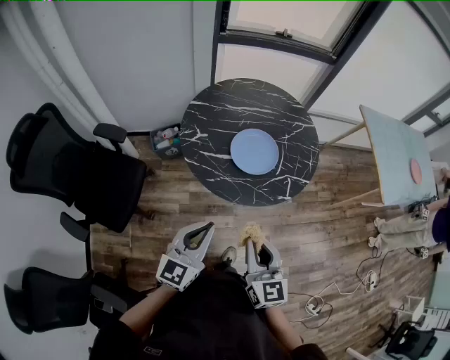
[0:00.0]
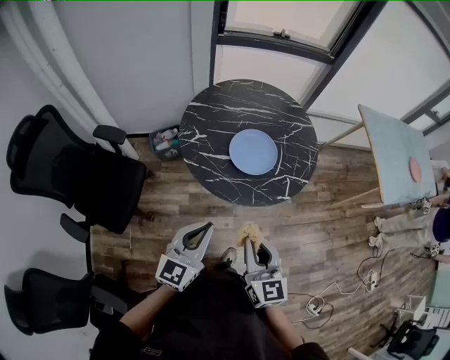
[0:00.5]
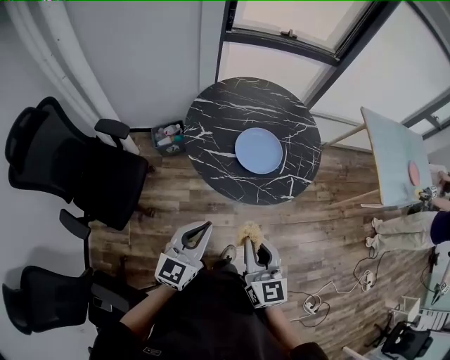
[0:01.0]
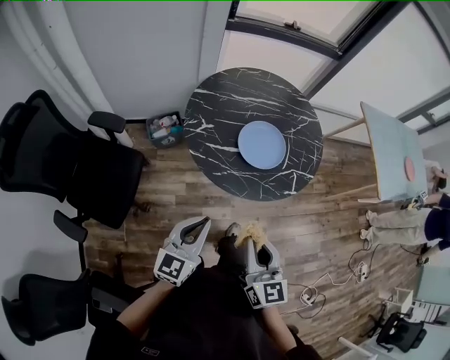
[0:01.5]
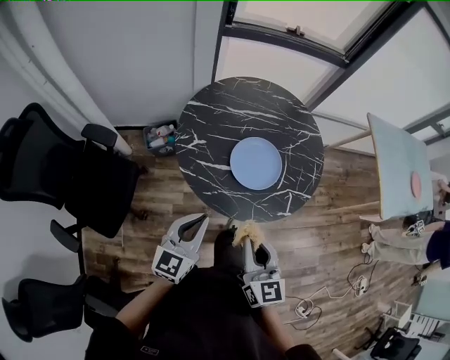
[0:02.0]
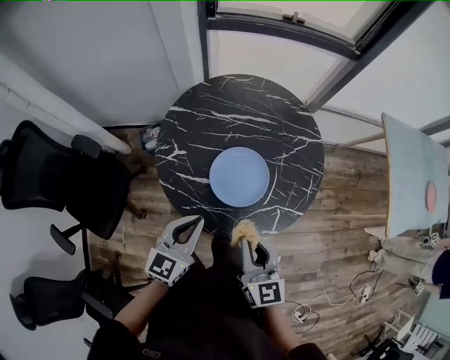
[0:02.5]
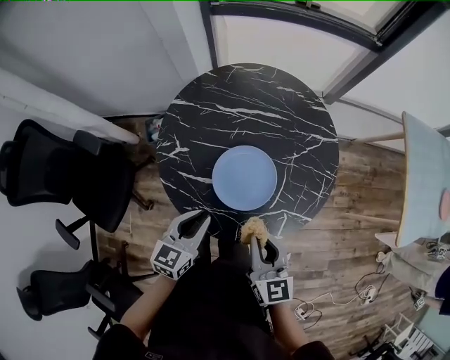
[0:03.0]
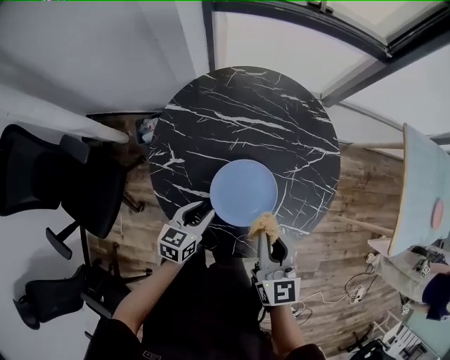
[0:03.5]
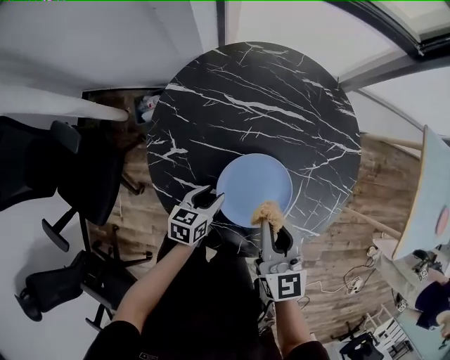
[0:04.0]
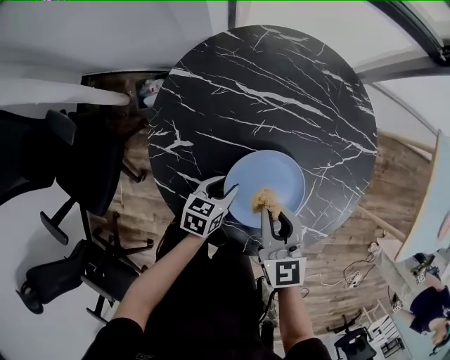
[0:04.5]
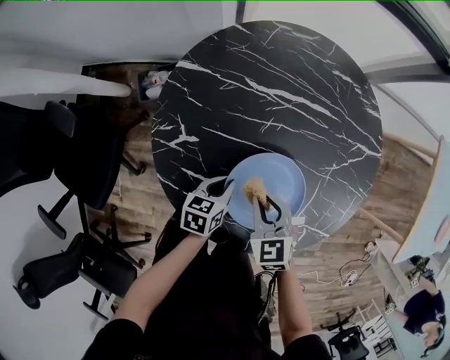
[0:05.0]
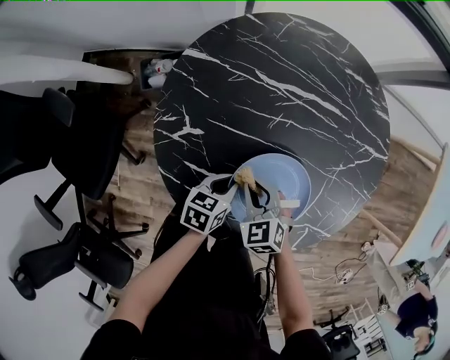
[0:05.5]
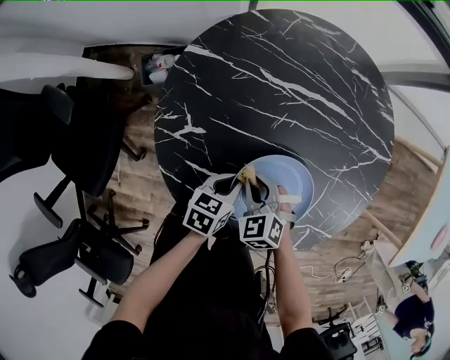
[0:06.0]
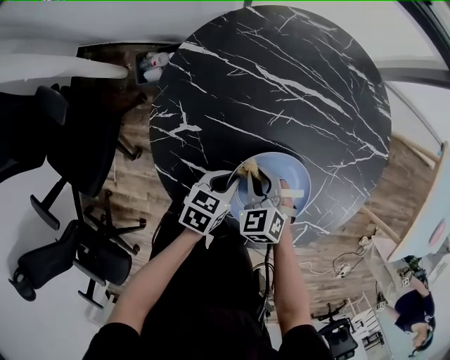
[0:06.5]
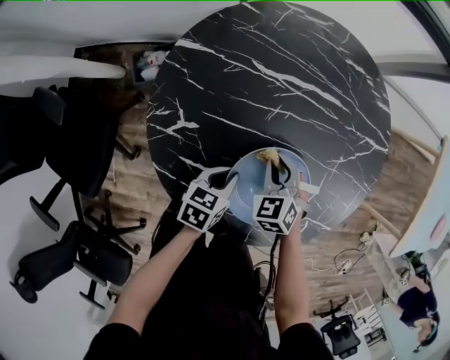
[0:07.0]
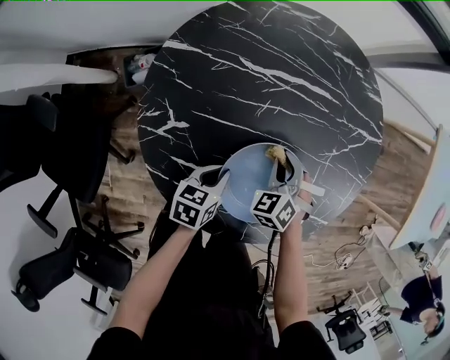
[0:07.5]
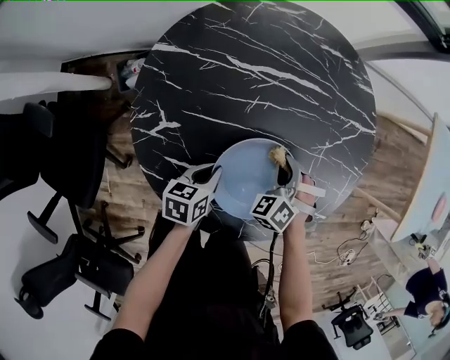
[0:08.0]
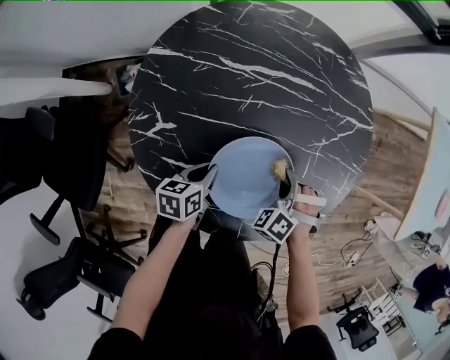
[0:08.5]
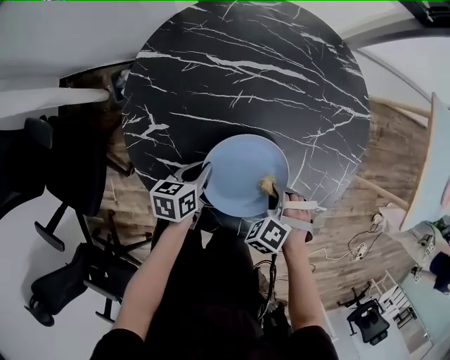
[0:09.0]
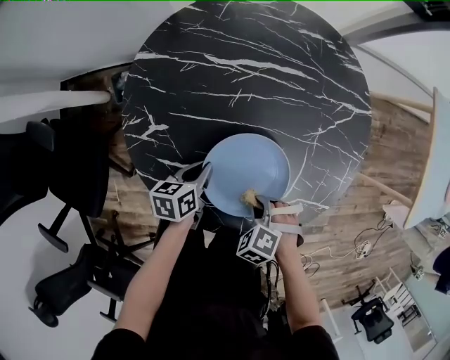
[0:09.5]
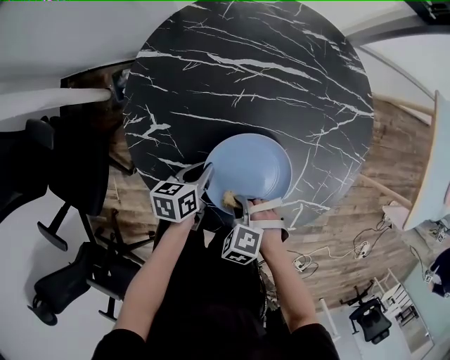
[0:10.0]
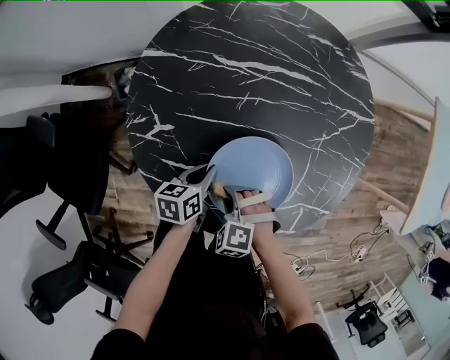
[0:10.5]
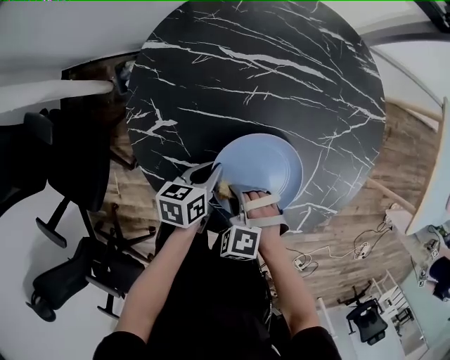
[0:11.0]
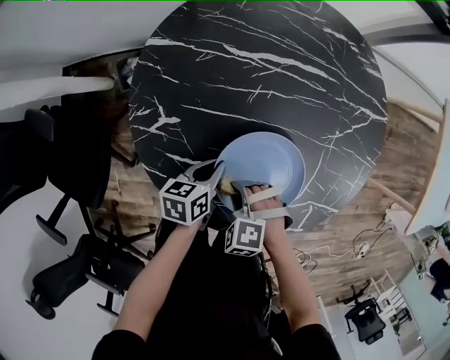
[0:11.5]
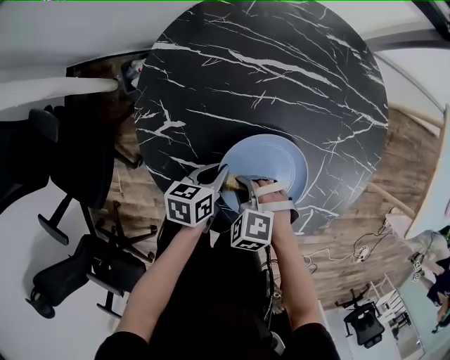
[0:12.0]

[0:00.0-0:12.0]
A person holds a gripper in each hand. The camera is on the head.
0:00.0 to 0:02.0: The left gripper moves forward and downward, roughly 10 cm, while the right gripper moves forward, roughly 10 cm.
0:02.0 to 0:04.0: The left gripper travels downward and forward by about 40 cm, points its fingers roughly 30 degrees further downward, and opens up; the right gripper is displaced forward by about 30 cm.
0:04.0 to 0:06.0: The left gripper closes up; the right gripper heads downward, covering roughly 25 cm, and angles its fingers downward, by some 40 degrees.
0:06.0 to 0:08.0: The right gripper moves approximately 15 cm, and rotates some 30 degrees.
0:08.0 to 0:10.0: The right gripper ends up about 20 cm from where it was, and rotates about 40 degrees.
0:10.0 to 0:12.0: The right gripper shifts by roughly 10 cm.

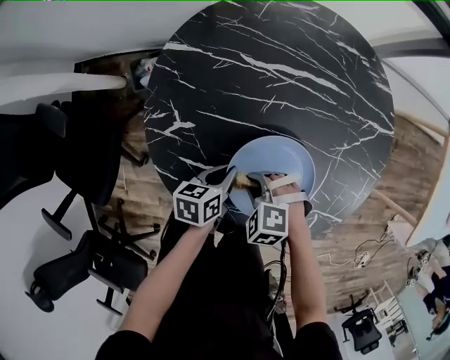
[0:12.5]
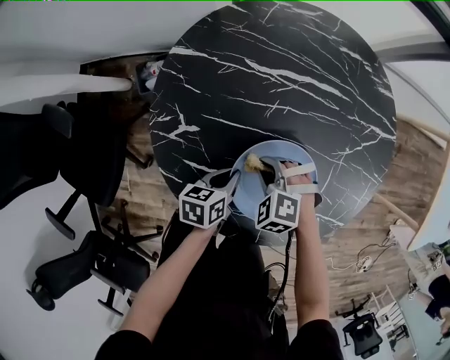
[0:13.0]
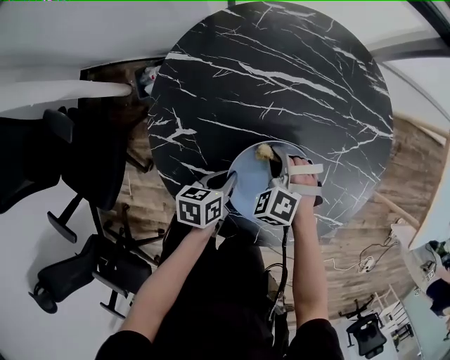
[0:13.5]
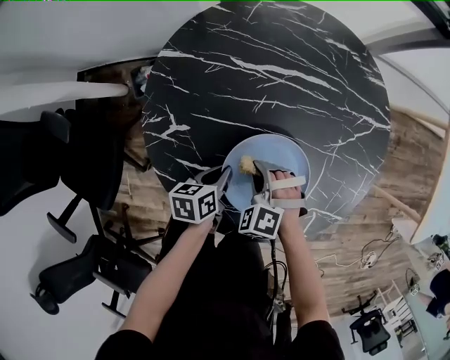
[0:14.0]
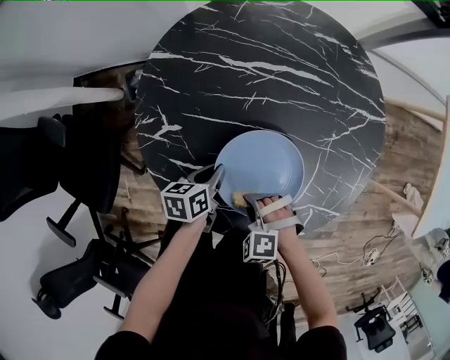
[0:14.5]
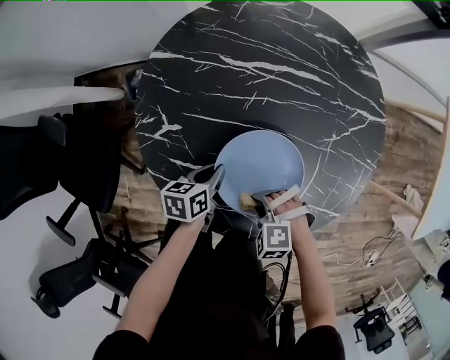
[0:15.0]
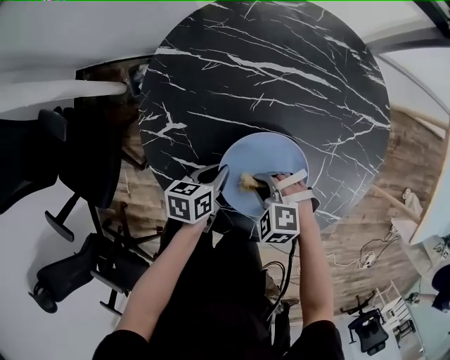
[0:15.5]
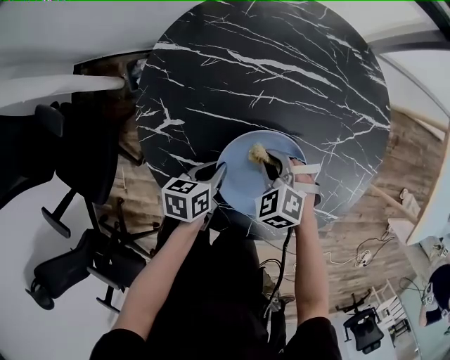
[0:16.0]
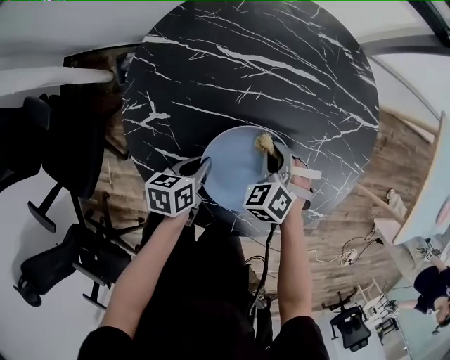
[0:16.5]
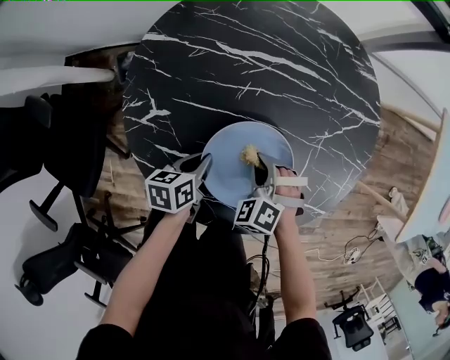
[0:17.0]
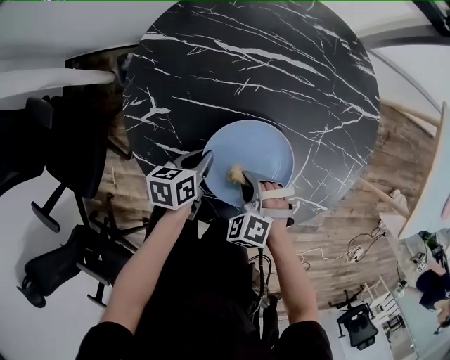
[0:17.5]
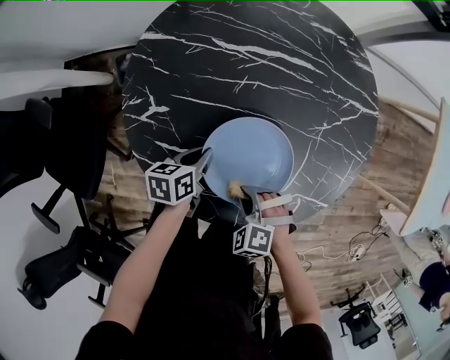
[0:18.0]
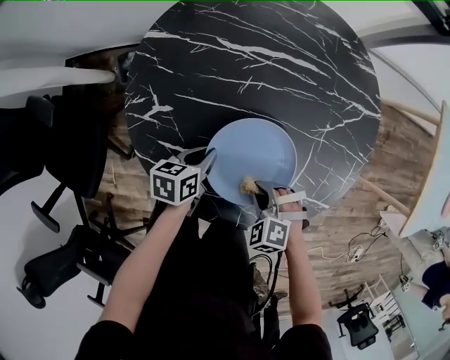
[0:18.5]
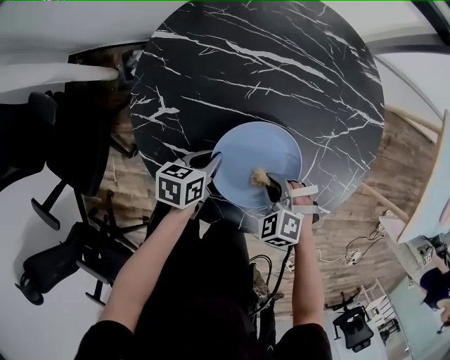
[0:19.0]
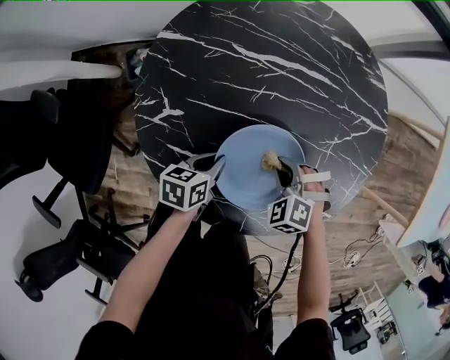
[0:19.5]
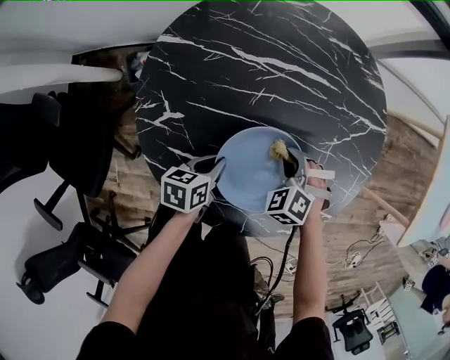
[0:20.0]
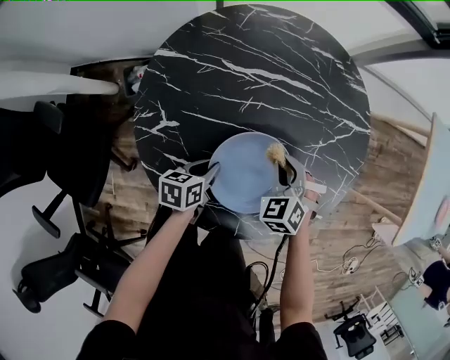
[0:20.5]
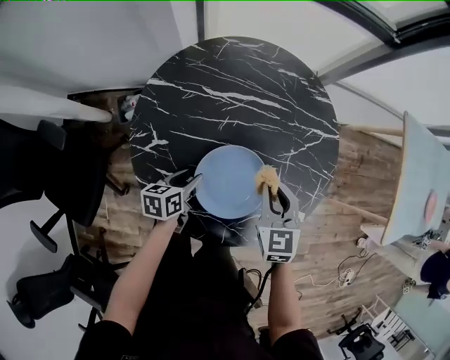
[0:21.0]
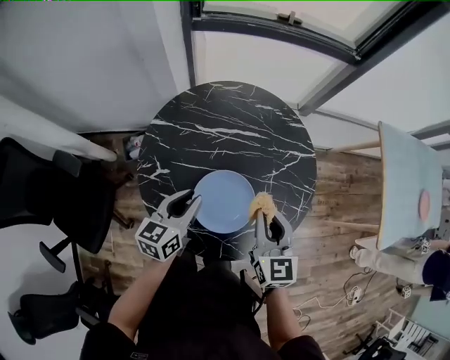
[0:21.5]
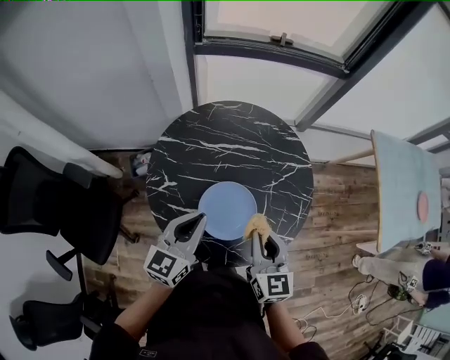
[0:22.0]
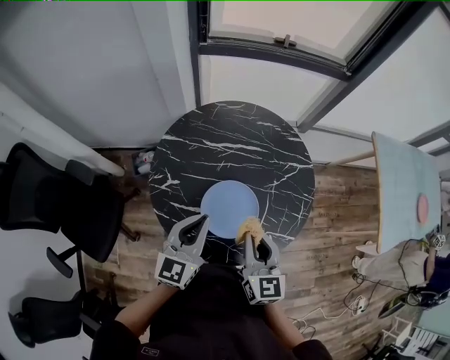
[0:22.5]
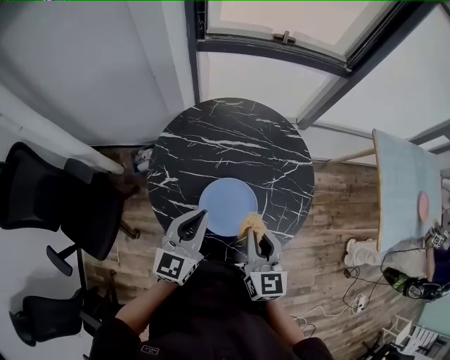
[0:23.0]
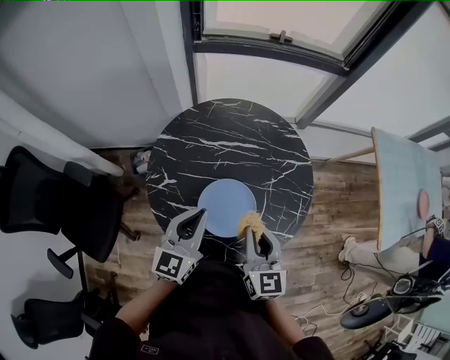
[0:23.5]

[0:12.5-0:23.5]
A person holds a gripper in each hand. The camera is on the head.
0:14.5 to 0:16.0: The right gripper ends up roughly 15 cm from where it was, and turns by about 20 degrees.
0:16.0 to 0:18.0: The right gripper travels backward by some 15 cm.
0:18.0 to 0:20.0: The right gripper goes approximately 15 cm forward.
0:20.0 to 0:21.5: Both grippers travel together upward, approximately 30 cm. The left gripper rotates some 40 degrees, while the right gripper points its fingers roughly 40 degrees further upward.
0:21.5 to 0:23.5: The left gripper travels upward by approximately 10 cm, turns by approximately 20 degrees, and closes. Meanwhile the right gripper shifts roughly 5 cm backward.

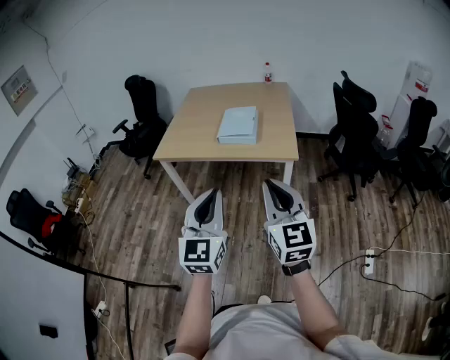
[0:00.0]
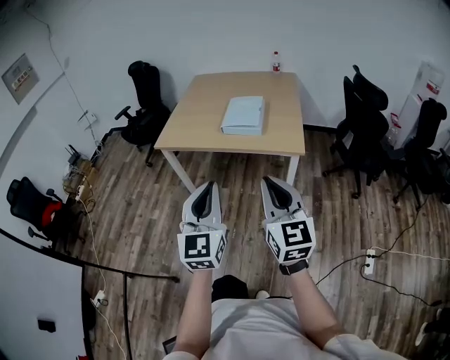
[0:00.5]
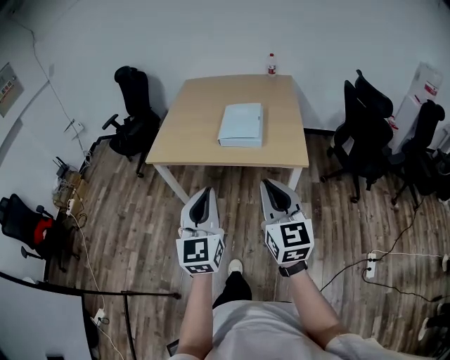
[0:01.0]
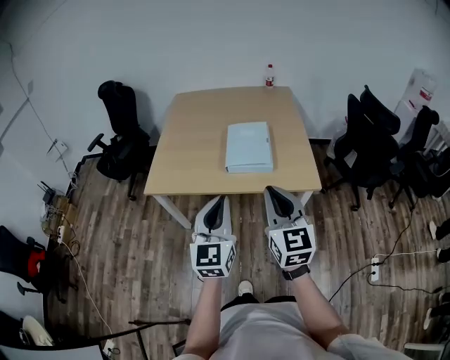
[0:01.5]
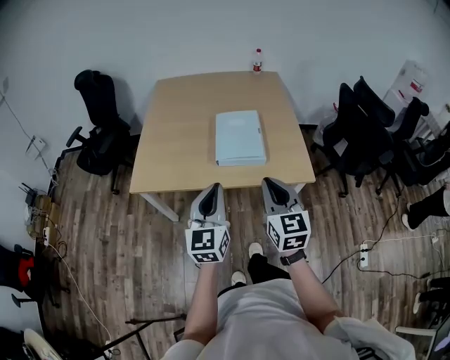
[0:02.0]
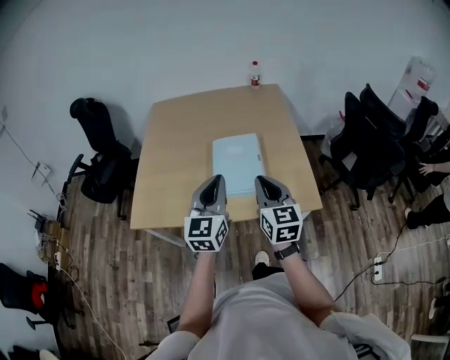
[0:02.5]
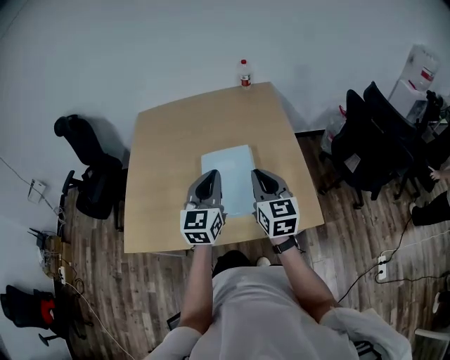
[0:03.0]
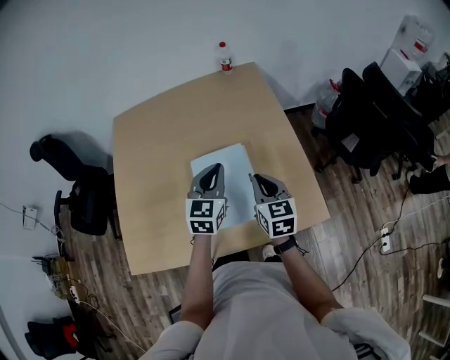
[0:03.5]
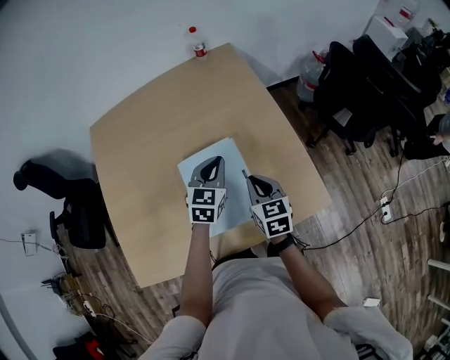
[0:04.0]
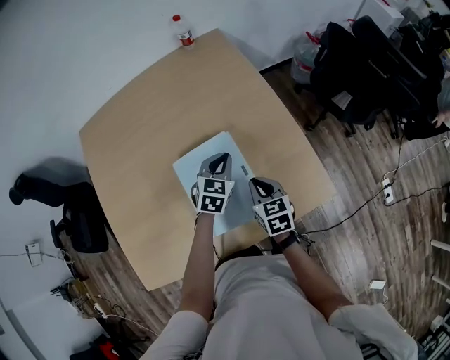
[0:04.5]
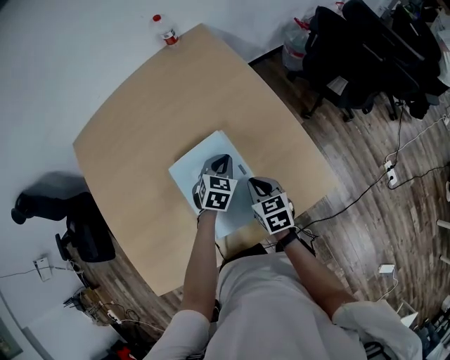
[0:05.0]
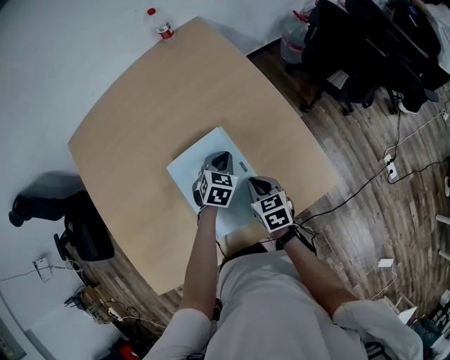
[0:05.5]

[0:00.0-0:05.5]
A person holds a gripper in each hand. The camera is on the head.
0:00.0 to 0:02.0: Both grippers move forward, some 40 cm.
0:02.0 to 0:03.5: The two grippers go about 40 cm forward. The left gripper changes its angle by some 30 degrees.
0:03.5 to 0:05.5: Both grippers move downward, some 20 cm. The left gripper angles its fingers downward, by roughly 30 degrees. The right gripper swivels about 20 degrees.
